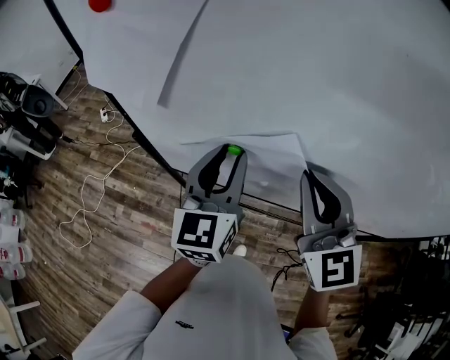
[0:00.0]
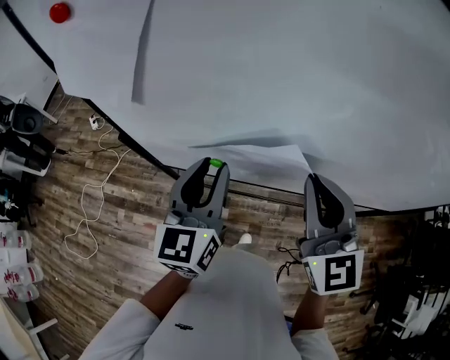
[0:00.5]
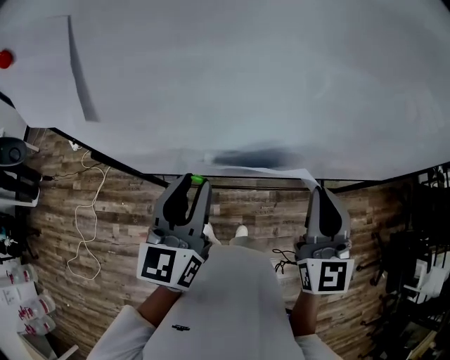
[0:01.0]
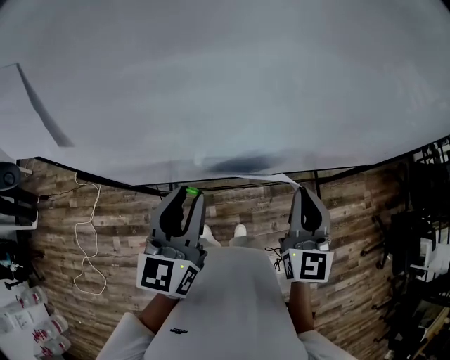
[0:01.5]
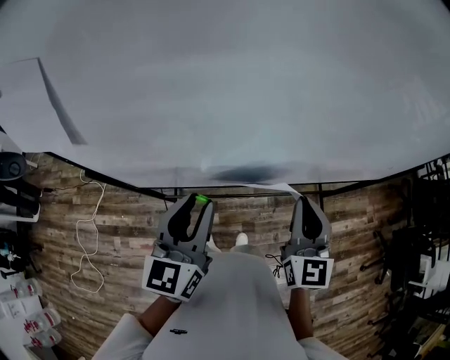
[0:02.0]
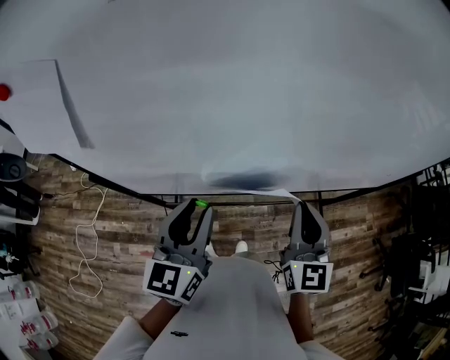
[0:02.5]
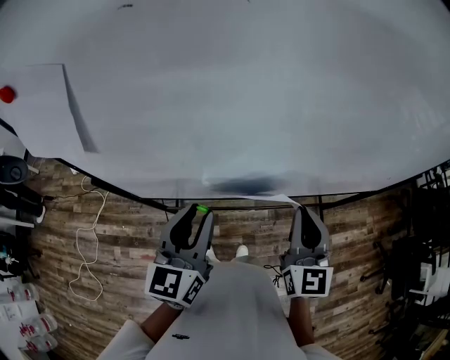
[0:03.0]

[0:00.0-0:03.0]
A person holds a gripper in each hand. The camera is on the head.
0:00.0 to 0:01.5: The left gripper moves approximately 10 cm, and turns by roughly 20 degrees; the right gripper changes place by about 20 cm, and changes its angle by about 40 degrees.
0:01.5 to 0:03.0: The grippers stay close to where they were, moving slightly.

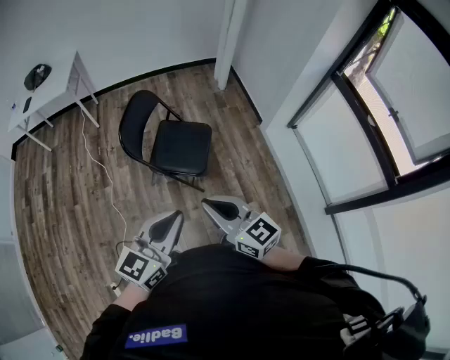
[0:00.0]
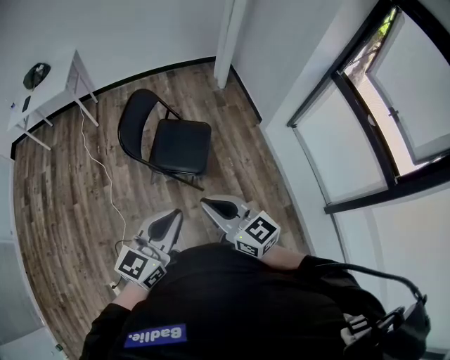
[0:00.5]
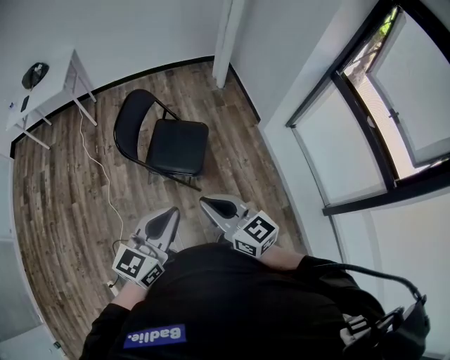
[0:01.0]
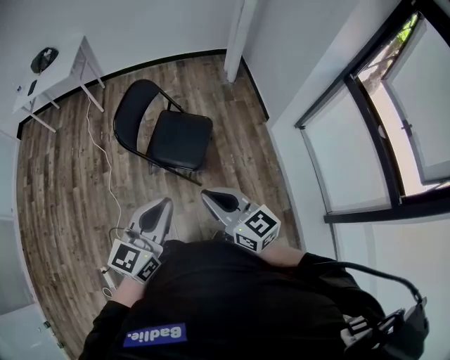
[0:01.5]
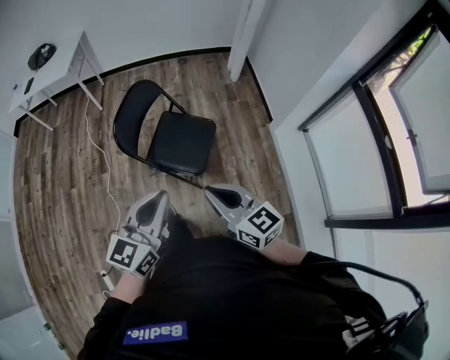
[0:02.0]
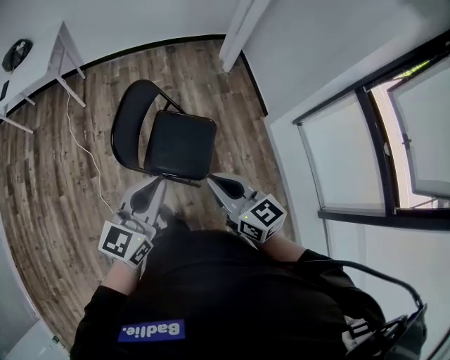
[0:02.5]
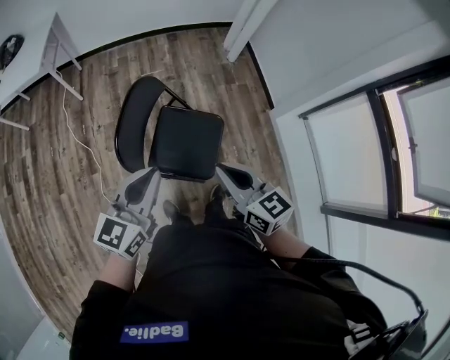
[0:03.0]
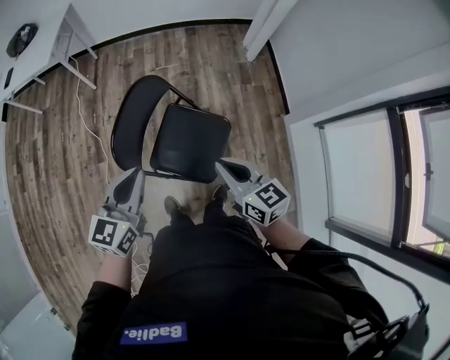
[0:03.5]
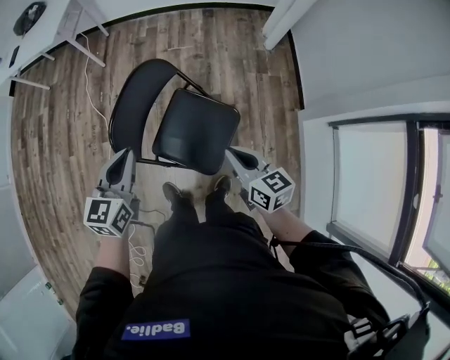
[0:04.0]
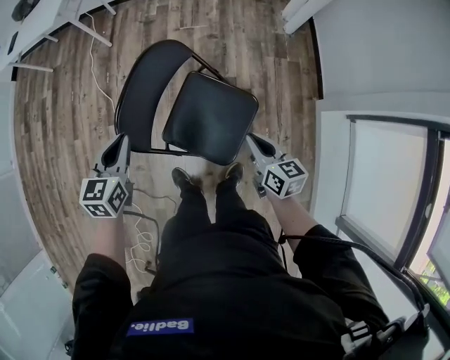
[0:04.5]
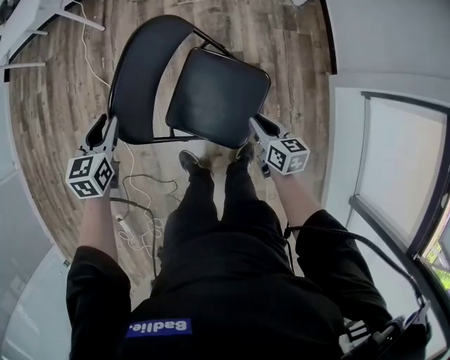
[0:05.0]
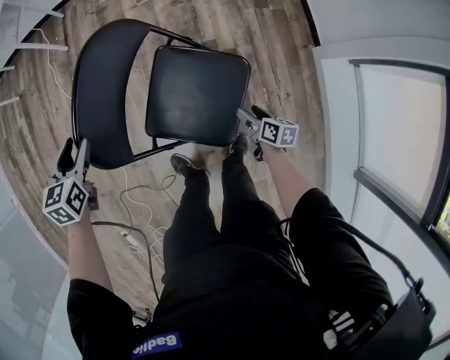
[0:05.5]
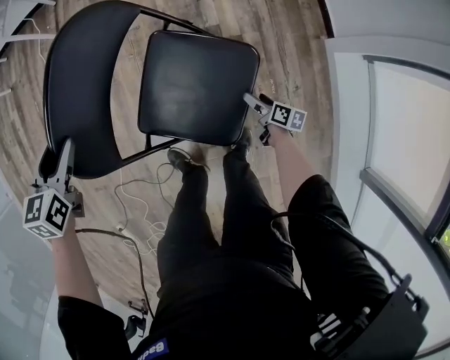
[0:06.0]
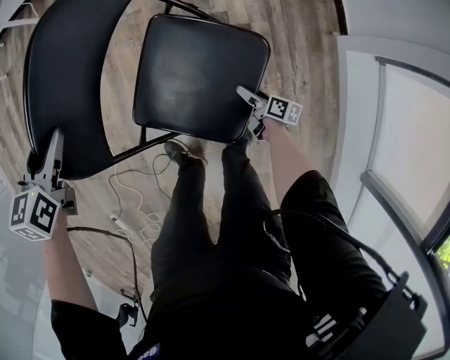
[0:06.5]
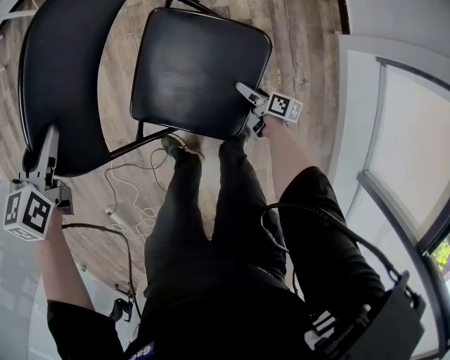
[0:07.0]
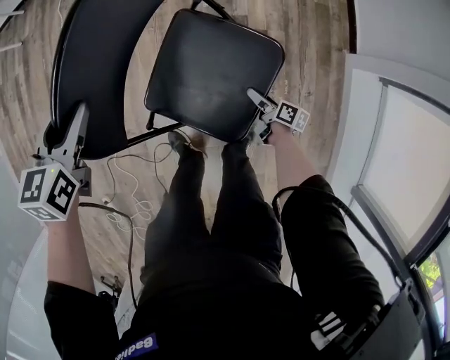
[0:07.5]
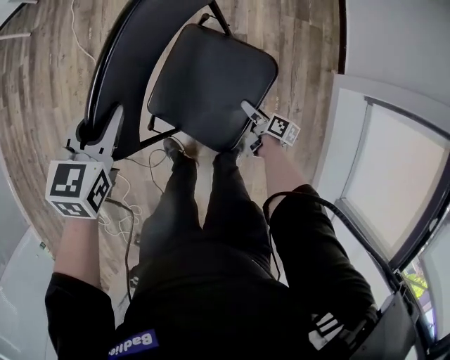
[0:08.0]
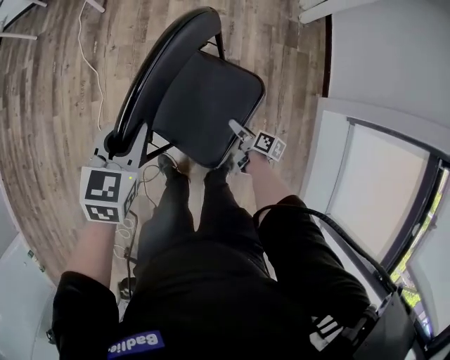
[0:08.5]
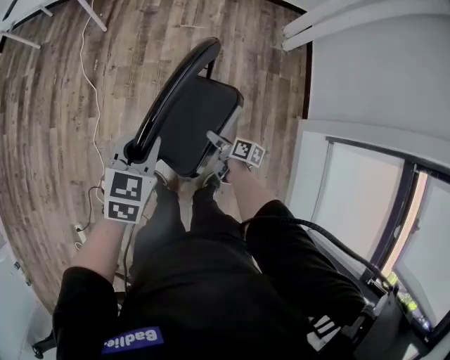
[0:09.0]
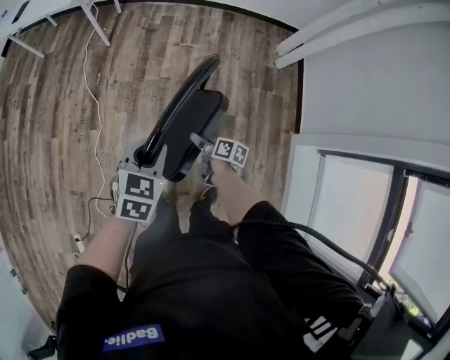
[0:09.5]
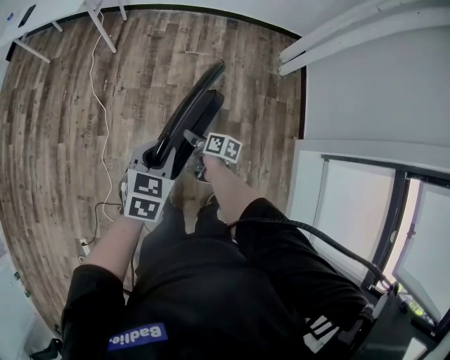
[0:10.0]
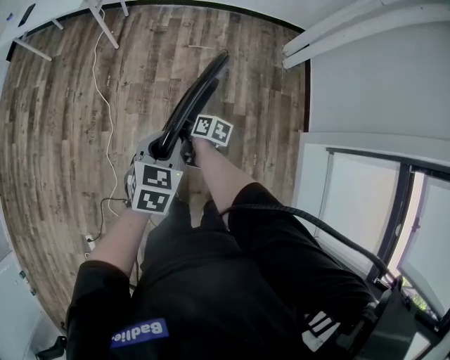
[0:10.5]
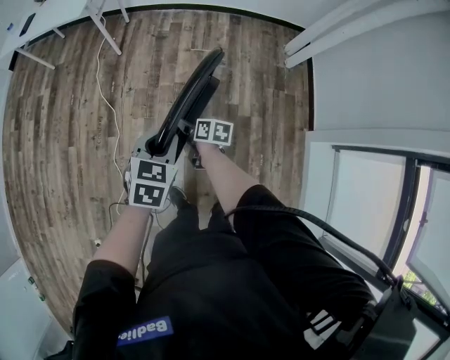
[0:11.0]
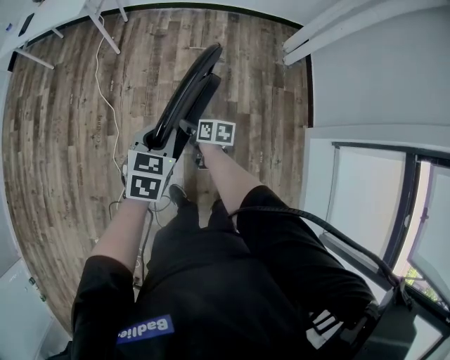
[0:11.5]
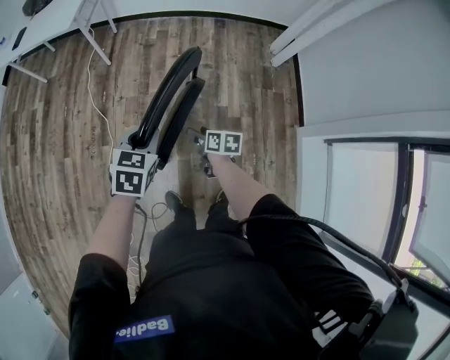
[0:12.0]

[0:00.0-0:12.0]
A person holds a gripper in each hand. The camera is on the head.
0:00.0 to 0:02.0: The right gripper moves forward and to the right, roughly 15 cm, while the left gripper moves forward, some 15 cm.
0:02.0 to 0:04.0: The grippers both shift forward and downward by about 40 cm. The left gripper turns by about 20 degrees.
0:04.0 to 0:06.0: The right gripper travels downward by approximately 50 cm, rolls clockwise, seen from behind, by about 40 degrees, and opens its fingers. Meanwhile the left gripper heads downward, forward and to the left, covering approximately 30 cm, changes its angle by some 20 degrees, and opens.
0:06.0 to 0:08.0: The right gripper goes some 10 cm to the left and upward. Meanwhile the left gripper is displaced upward, to the right and backward by about 10 cm.
0:08.0 to 0:10.0: The right gripper goes roughly 35 cm upward, to the left and forward. Meanwhile the left gripper goes approximately 10 cm upward.
0:10.0 to 0:12.0: The left gripper ends up some 5 cm from where it was.

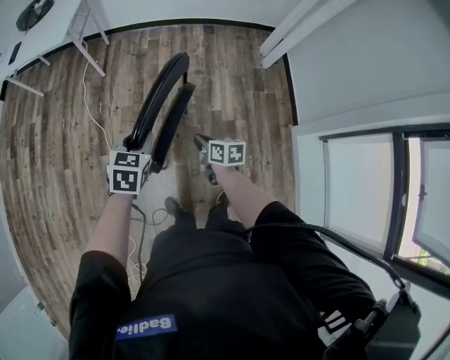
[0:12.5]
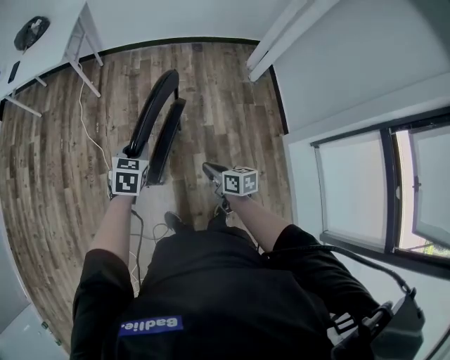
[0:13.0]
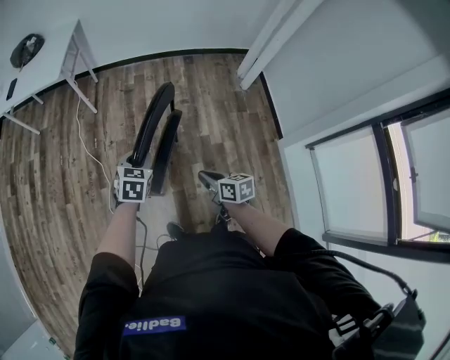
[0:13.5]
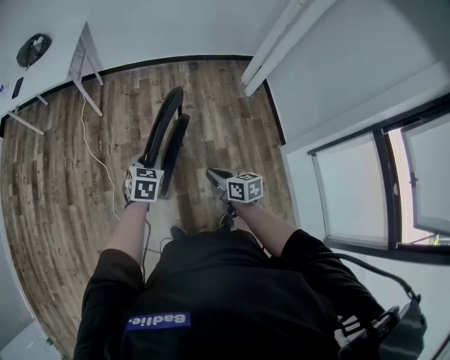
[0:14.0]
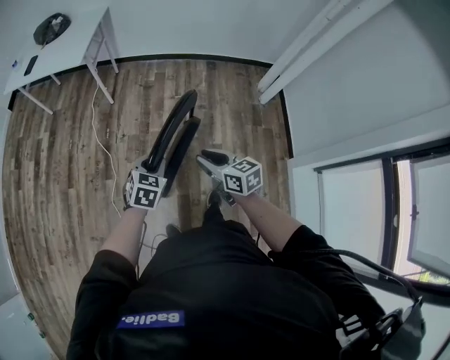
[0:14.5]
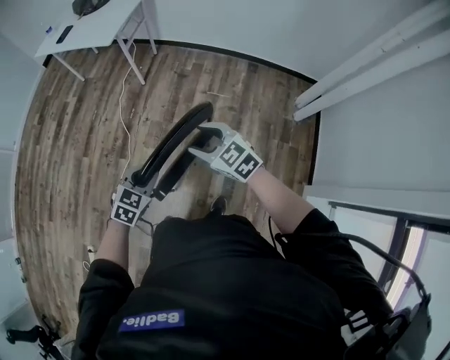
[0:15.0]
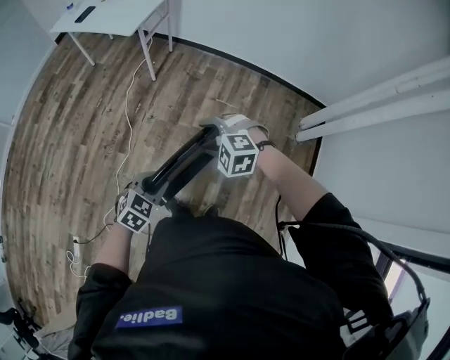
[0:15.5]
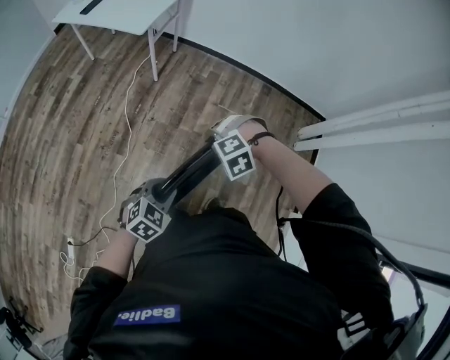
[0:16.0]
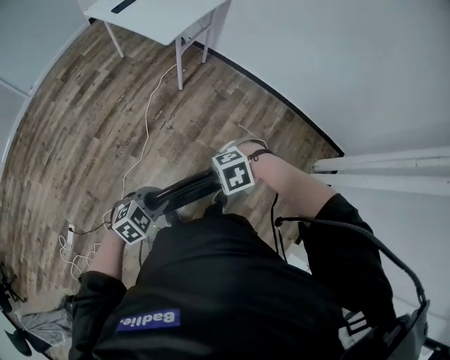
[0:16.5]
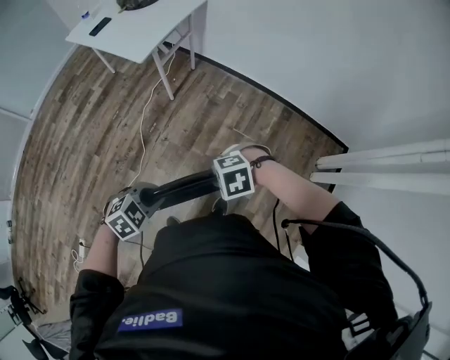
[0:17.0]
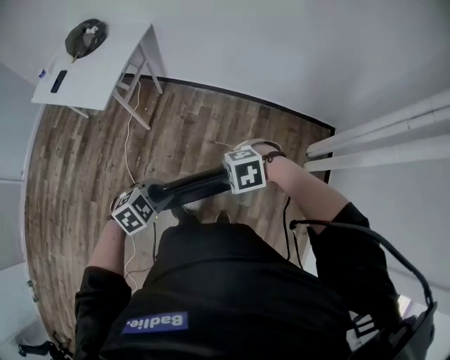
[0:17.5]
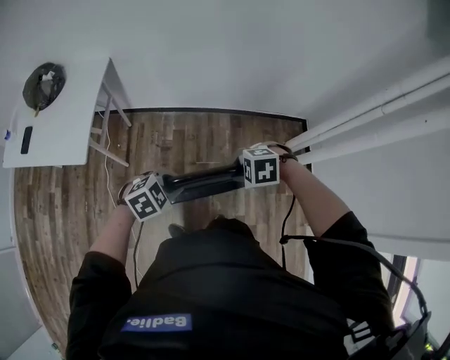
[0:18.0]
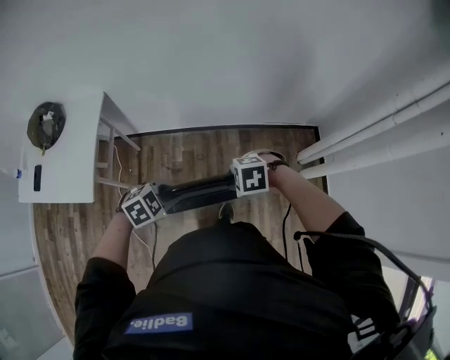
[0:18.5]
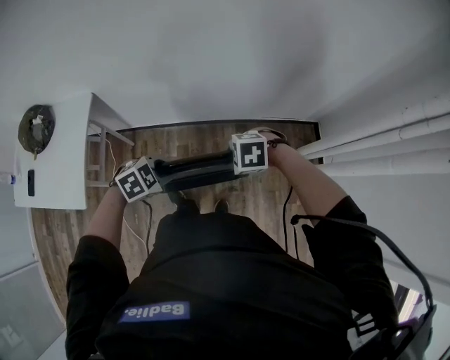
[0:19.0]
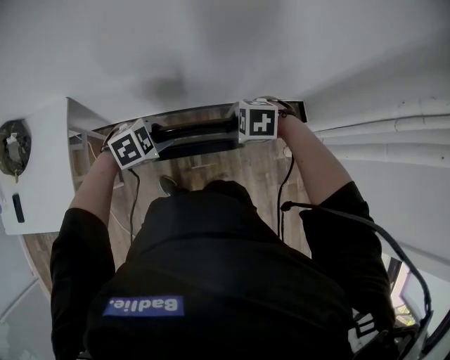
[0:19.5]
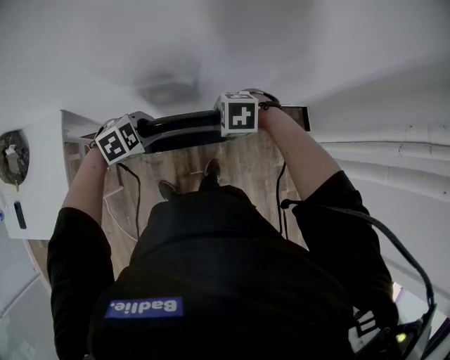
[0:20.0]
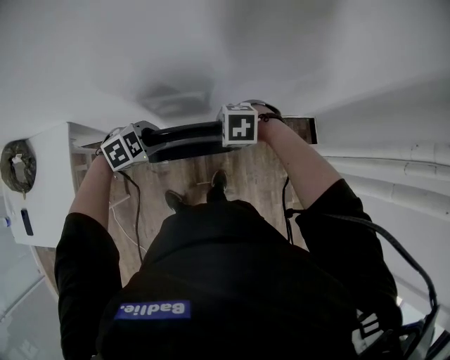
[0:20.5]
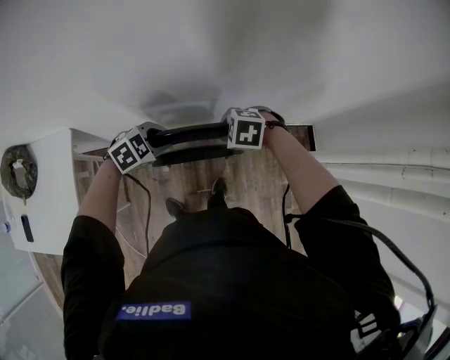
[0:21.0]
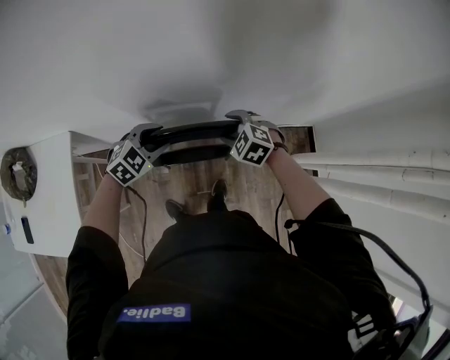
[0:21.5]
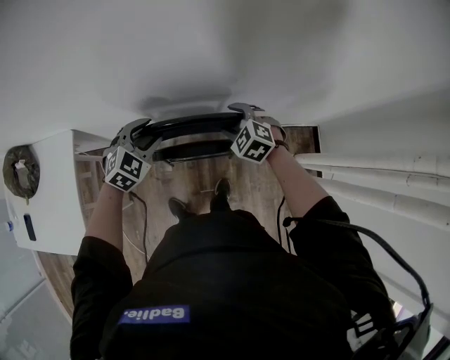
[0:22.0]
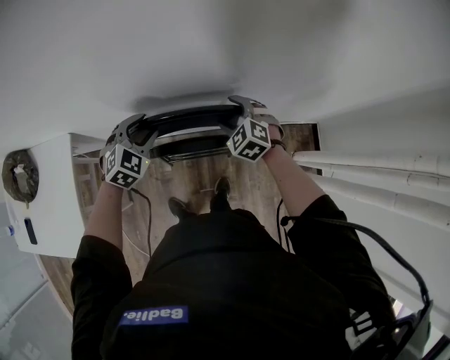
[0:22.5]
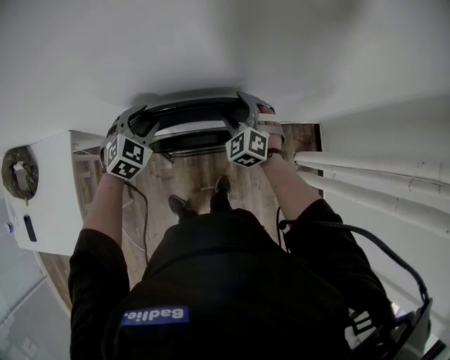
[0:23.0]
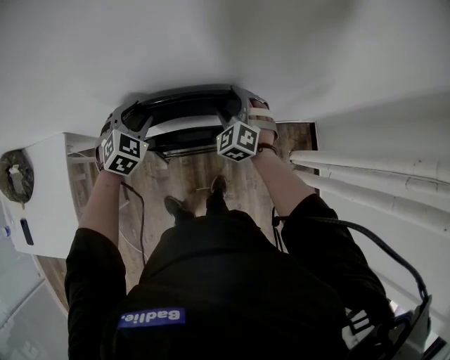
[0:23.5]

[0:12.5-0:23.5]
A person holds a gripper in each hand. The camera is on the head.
0:12.5 to 0:14.5: The right gripper is displaced upward by about 15 cm, and turns by about 30 degrees.
0:14.5 to 0:16.0: The left gripper ends up about 5 cm from where it was; the right gripper shifts by some 20 cm, and rolls counterclockwise, seen from behind, by about 100 degrees.
0:16.0 to 0:18.0: The left gripper changes place by roughly 50 cm, and changes its angle by approximately 40 degrees. Meanwhile the right gripper shifts by about 40 cm, and rolls clockwise, seen from behind, by some 50 degrees.
0:18.0 to 0:20.0: The pair of grippers is taken some 50 cm.
0:20.0 to 0:21.5: The left gripper ends up about 10 cm from where it was, and opens up. The right gripper ends up some 10 cm from where it was, turns by some 30 degrees, and opens.
0:21.5 to 0:23.5: Both grippers move forward, roughly 10 cm. The left gripper changes its angle by some 20 degrees; the right gripper changes its angle by approximately 30 degrees.
